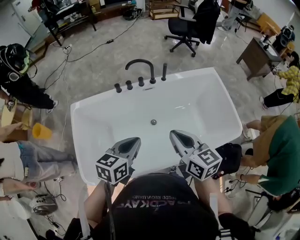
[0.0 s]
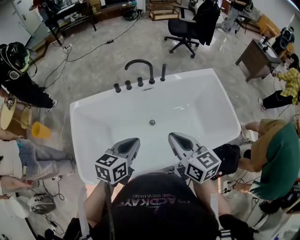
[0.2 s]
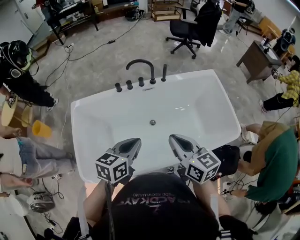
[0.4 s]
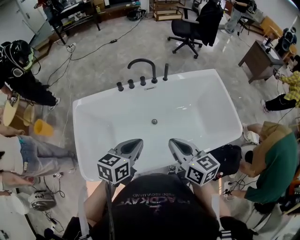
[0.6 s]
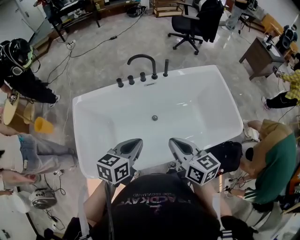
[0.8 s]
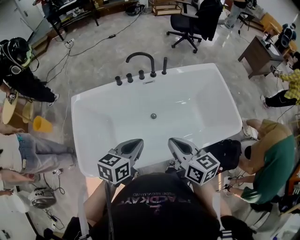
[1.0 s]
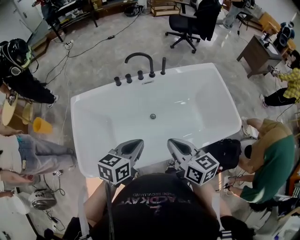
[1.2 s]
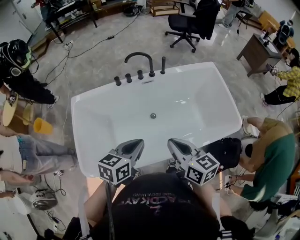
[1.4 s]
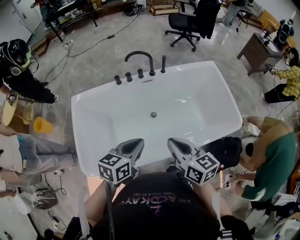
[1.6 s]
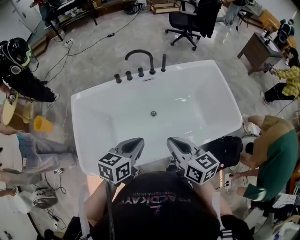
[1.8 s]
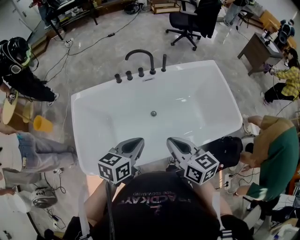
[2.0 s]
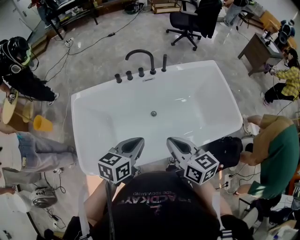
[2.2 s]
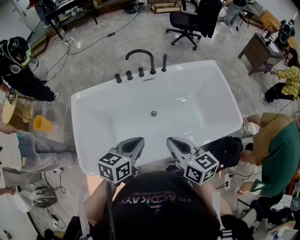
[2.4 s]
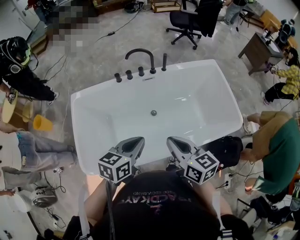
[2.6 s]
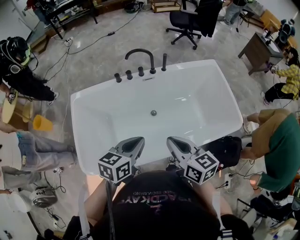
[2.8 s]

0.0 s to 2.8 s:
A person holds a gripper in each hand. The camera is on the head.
0.0 to 1.4 s: Both grippers travel together backward, about 5 cm.
1.4 to 2.8 s: Neither gripper changes place.

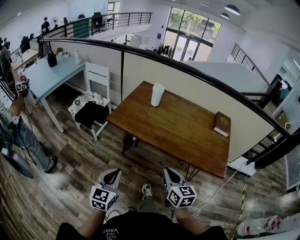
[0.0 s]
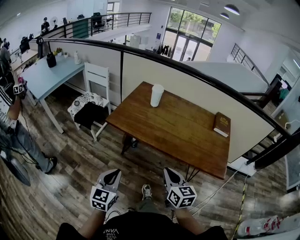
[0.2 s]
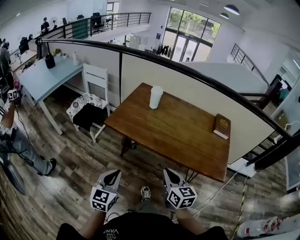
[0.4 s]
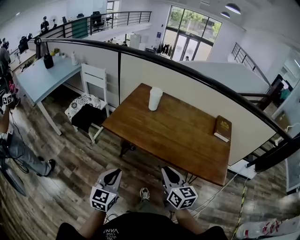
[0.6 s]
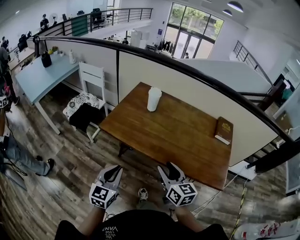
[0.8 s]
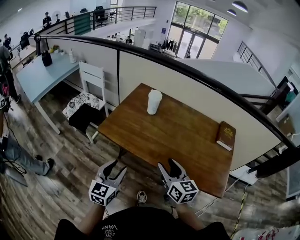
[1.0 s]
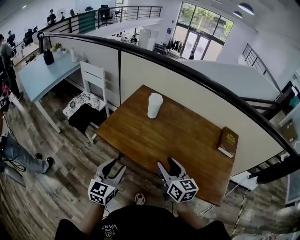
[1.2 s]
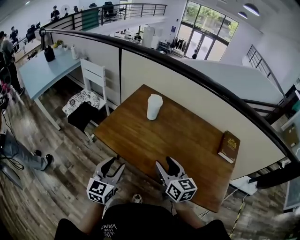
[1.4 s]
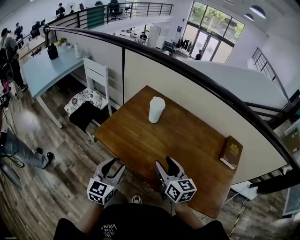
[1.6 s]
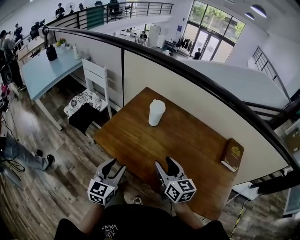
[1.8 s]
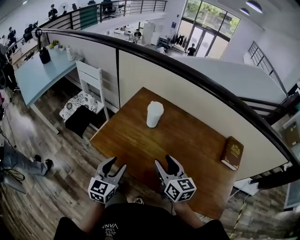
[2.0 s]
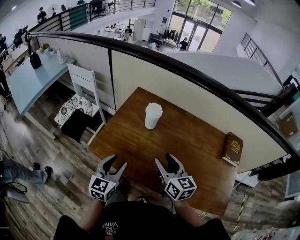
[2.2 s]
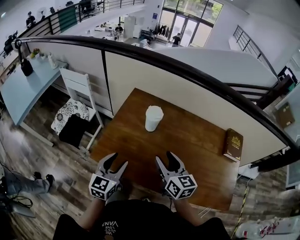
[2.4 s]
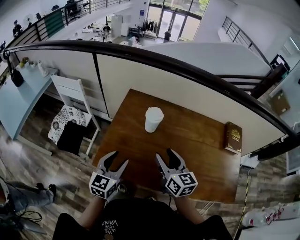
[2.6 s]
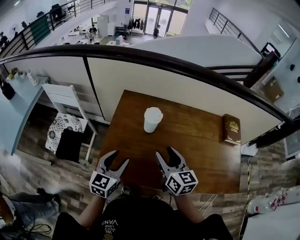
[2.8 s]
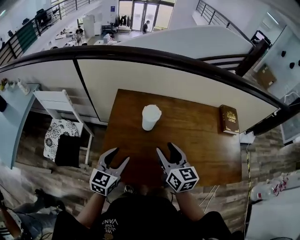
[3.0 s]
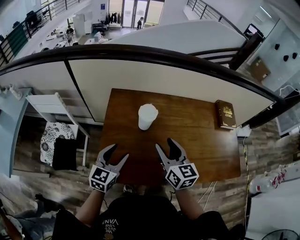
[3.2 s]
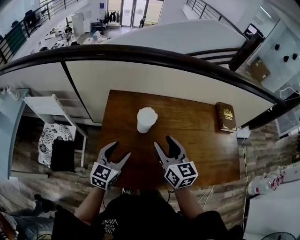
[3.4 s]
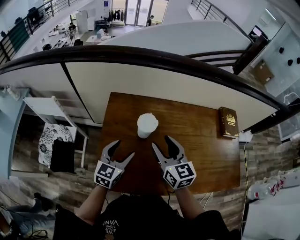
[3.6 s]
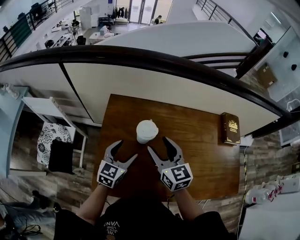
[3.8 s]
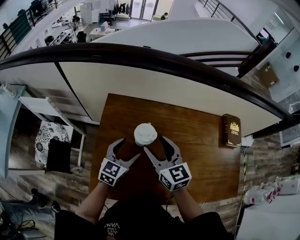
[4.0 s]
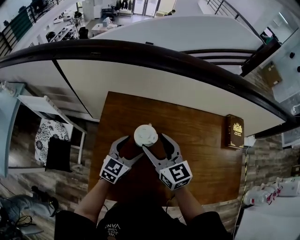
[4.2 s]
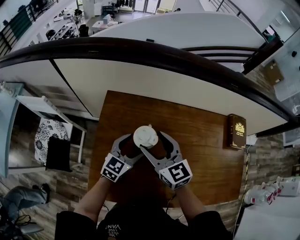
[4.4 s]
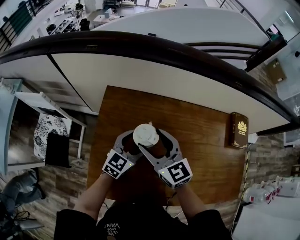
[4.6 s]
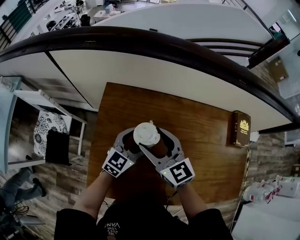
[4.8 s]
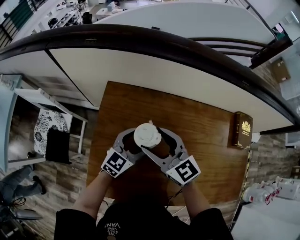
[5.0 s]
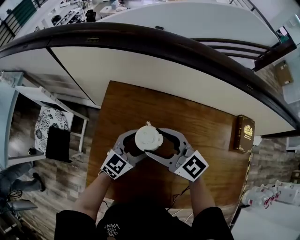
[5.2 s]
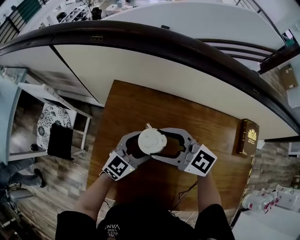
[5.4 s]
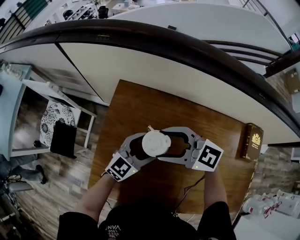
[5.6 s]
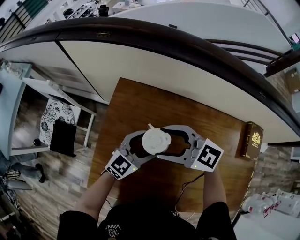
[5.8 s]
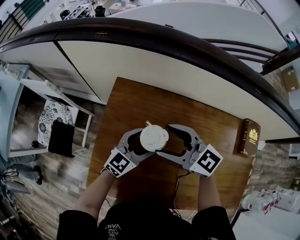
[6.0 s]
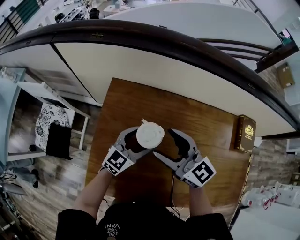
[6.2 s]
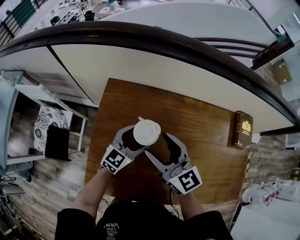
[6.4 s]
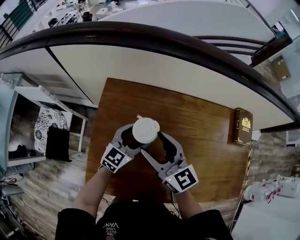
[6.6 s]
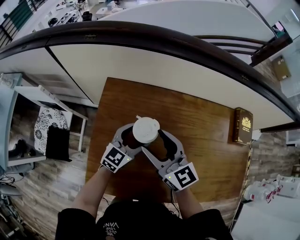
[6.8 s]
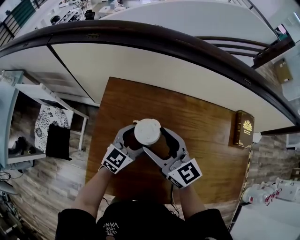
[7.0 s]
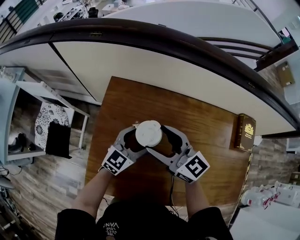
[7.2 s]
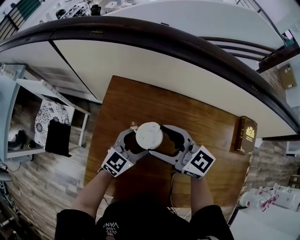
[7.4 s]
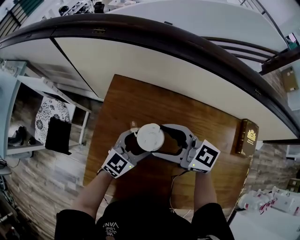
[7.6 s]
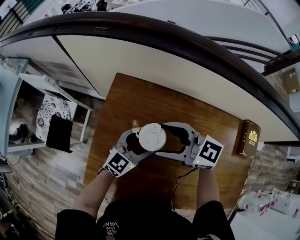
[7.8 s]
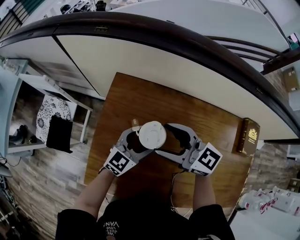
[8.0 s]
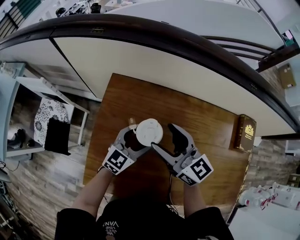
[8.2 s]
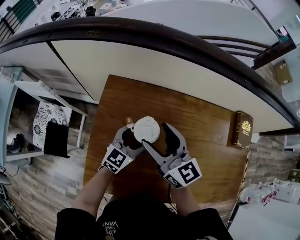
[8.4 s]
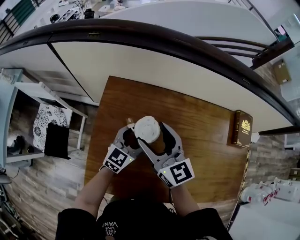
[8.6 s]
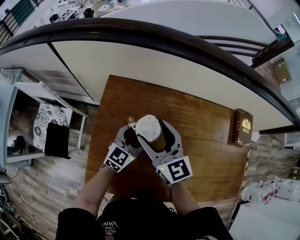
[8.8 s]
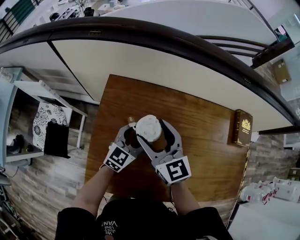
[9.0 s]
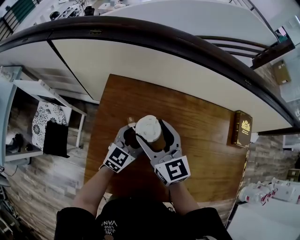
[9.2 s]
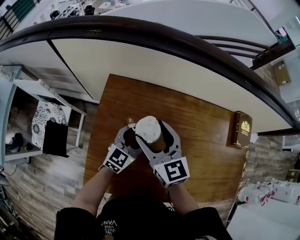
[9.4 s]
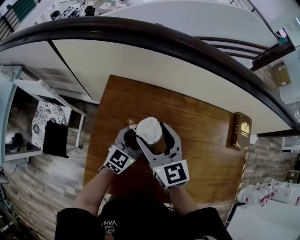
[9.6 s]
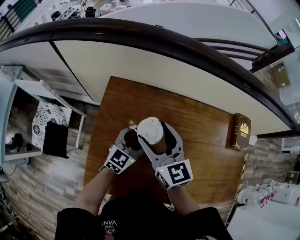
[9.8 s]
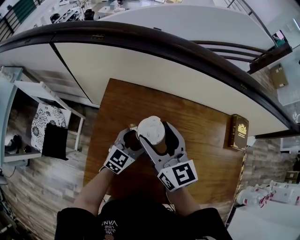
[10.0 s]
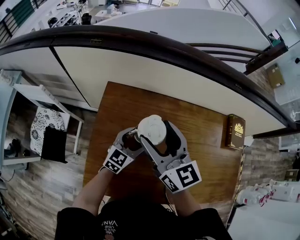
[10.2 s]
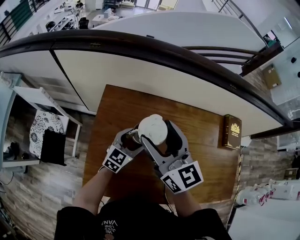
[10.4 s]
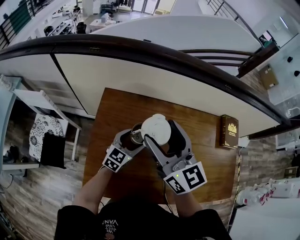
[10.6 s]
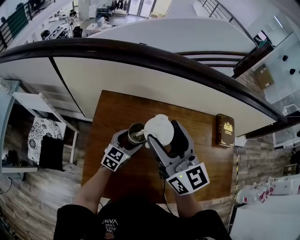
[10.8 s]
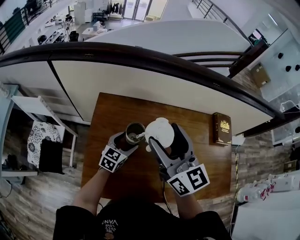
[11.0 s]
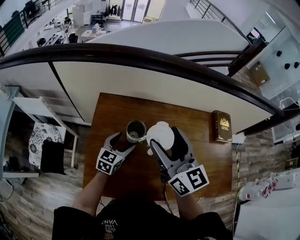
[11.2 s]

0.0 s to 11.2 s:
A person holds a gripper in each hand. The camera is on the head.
0.0 to 1.6 s: Both grippers move forward, roughly 25 cm. The right gripper opens. The left gripper opens up.
1.6 to 3.2 s: The left gripper ends up about 25 cm from where it was, and swivels about 40 degrees, while the right gripper shifts by some 20 cm, and rotates about 30 degrees.
3.2 to 4.8 s: The right gripper goes roughly 15 cm forward, and turns by some 30 degrees; the left gripper heads forward and to the right, covering roughly 20 cm.
6.4 to 8.0 s: The right gripper changes its angle by roughly 30 degrees.
8.0 to 9.6 s: The right gripper turns by about 40 degrees.
9.6 to 11.2 s: The right gripper shifts some 15 cm upward, to the right and backward.

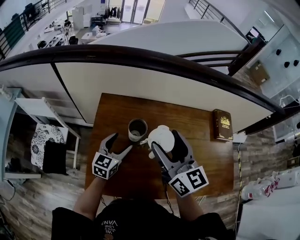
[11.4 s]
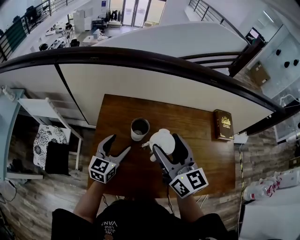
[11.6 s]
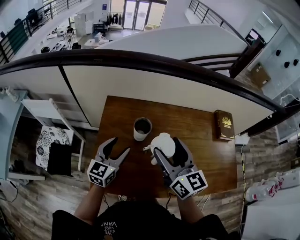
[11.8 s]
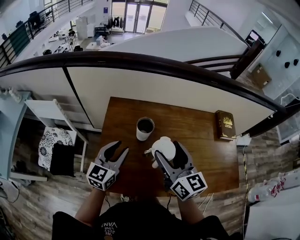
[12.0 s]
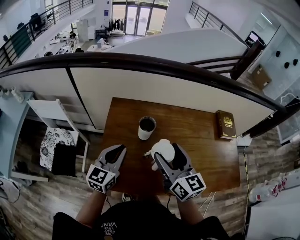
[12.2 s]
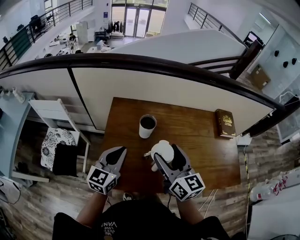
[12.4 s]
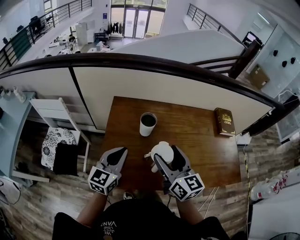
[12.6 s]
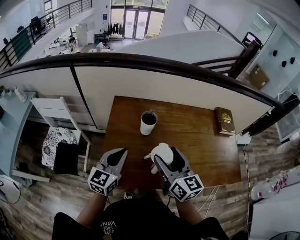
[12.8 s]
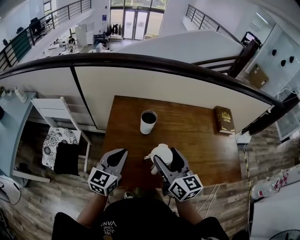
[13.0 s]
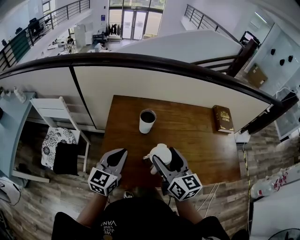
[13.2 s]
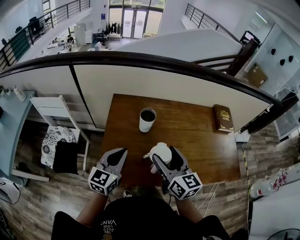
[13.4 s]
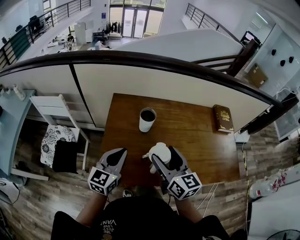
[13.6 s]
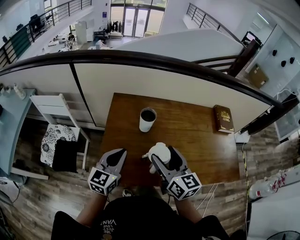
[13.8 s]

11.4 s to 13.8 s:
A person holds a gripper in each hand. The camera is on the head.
11.4 to 12.6 s: The left gripper is displaced backward and upward by approximately 15 cm, and closes its fingers. Meanwhile the right gripper heads backward, covering roughly 10 cm.
12.6 to 13.8 s: The grippers make only small movements.

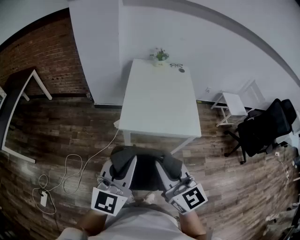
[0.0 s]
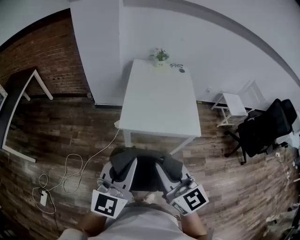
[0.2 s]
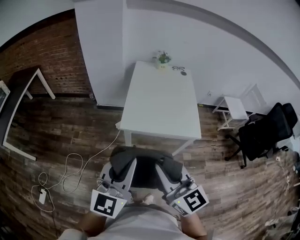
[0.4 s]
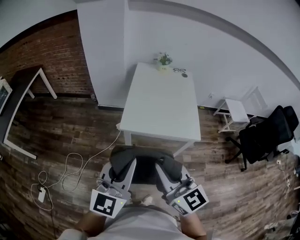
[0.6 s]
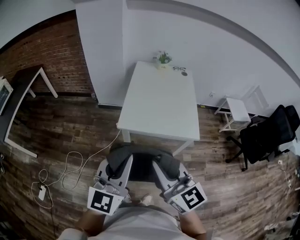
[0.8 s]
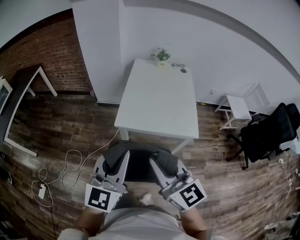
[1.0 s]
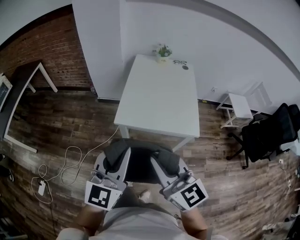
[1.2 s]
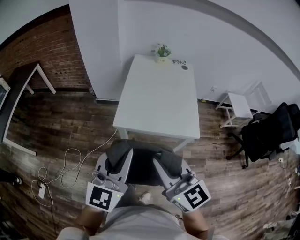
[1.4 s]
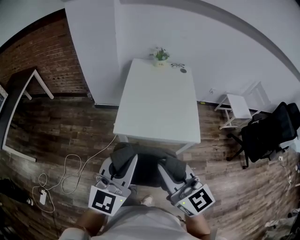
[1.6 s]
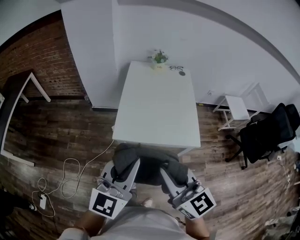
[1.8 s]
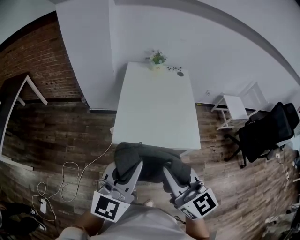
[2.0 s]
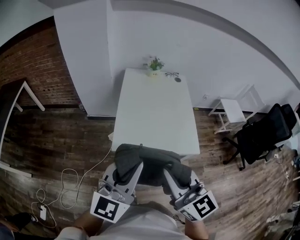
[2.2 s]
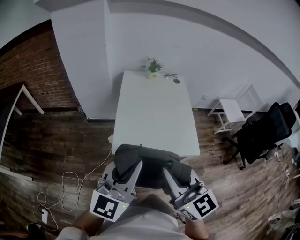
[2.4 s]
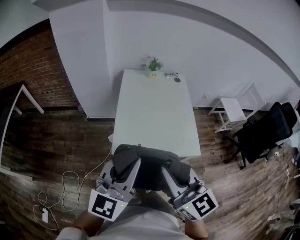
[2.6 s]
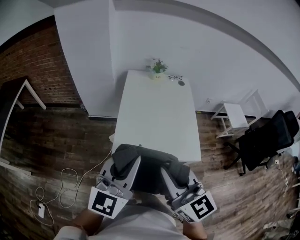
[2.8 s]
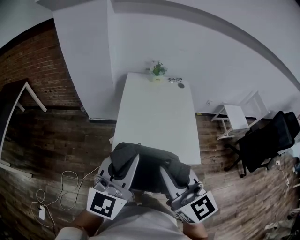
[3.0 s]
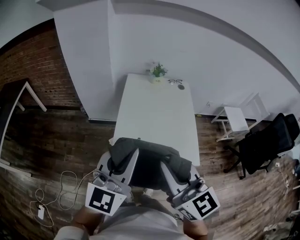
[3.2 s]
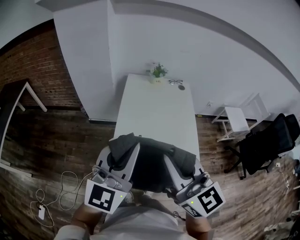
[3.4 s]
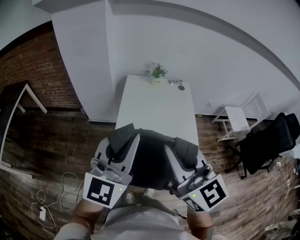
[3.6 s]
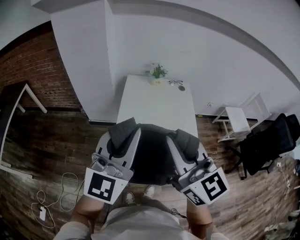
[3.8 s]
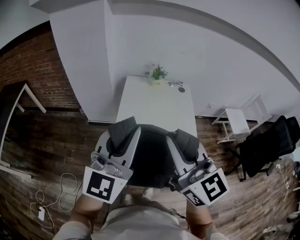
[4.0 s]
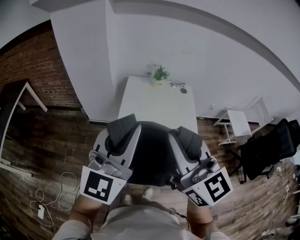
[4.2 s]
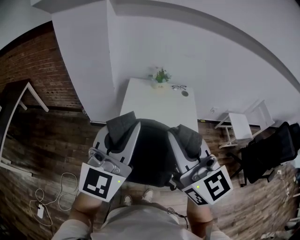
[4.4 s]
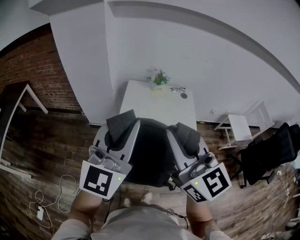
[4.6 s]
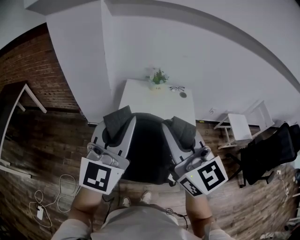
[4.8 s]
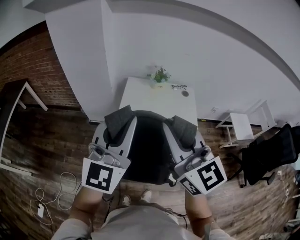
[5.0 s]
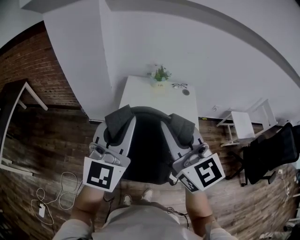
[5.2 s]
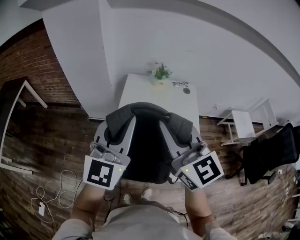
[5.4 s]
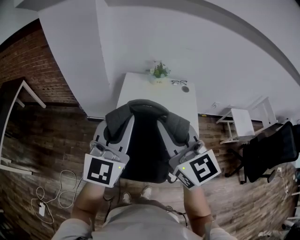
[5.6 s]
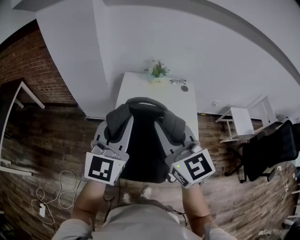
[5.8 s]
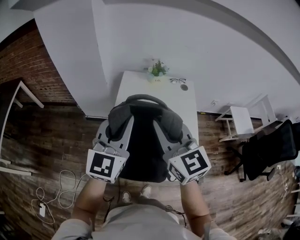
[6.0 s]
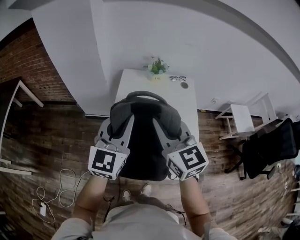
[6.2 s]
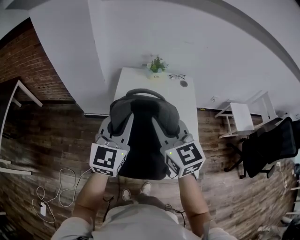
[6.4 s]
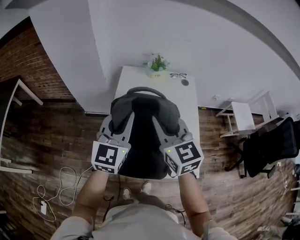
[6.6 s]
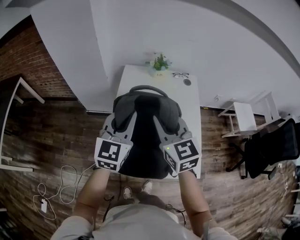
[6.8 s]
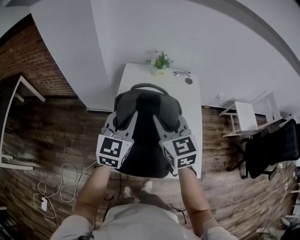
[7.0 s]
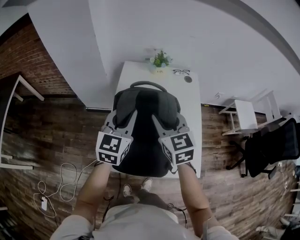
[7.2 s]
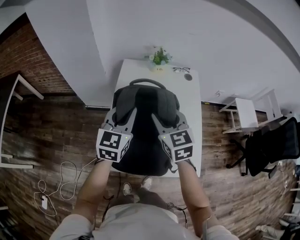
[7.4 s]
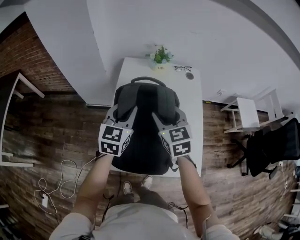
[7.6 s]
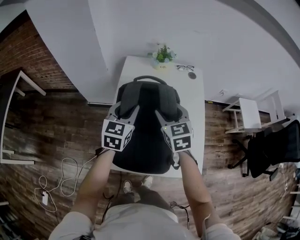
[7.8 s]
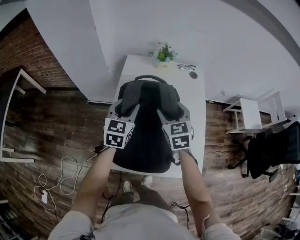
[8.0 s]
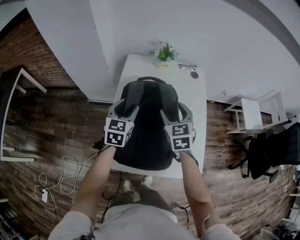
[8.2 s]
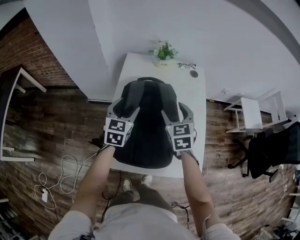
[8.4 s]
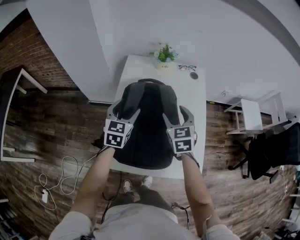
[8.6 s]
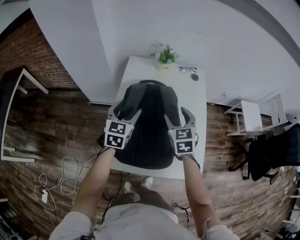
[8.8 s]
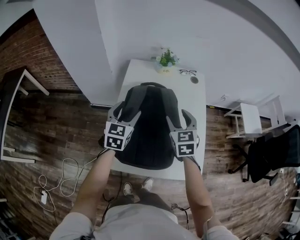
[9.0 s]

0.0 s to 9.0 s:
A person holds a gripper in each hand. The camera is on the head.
0.0 to 1.6 s: The right gripper goes some 5 cm to the right; the left gripper goes about 10 cm to the right and forward.
1.6 to 3.0 s: The two grippers go roughly 15 cm forward.
3.0 to 4.4 s: Both grippers travel together forward and upward, about 20 cm.
4.4 to 6.0 s: Both grippers move forward and downward, roughly 20 cm.
6.0 to 7.6 s: Both grippers move downward and forward, about 20 cm. The left gripper turns by about 20 degrees, while the right gripper rotates approximately 20 degrees, and opens its fingers.
7.6 to 9.0 s: The left gripper moves downward, approximately 5 cm, and opens its fingers. The right gripper moves to the right, about 5 cm.
